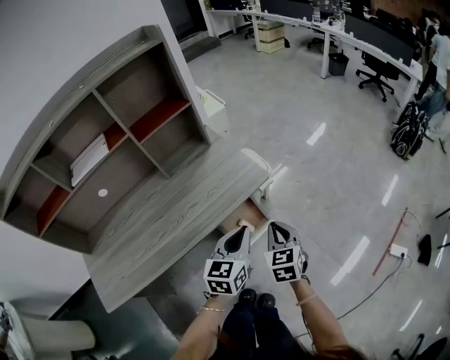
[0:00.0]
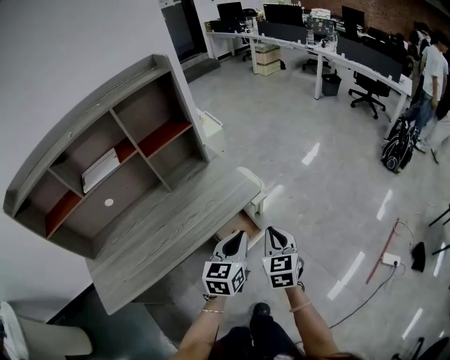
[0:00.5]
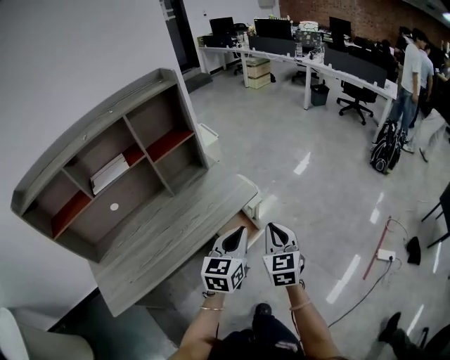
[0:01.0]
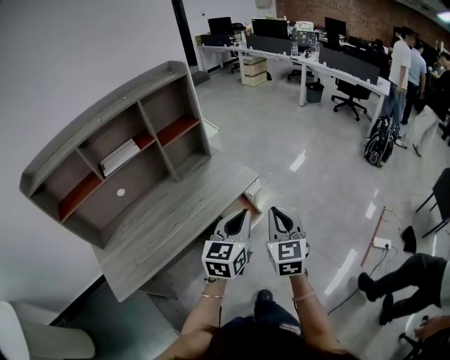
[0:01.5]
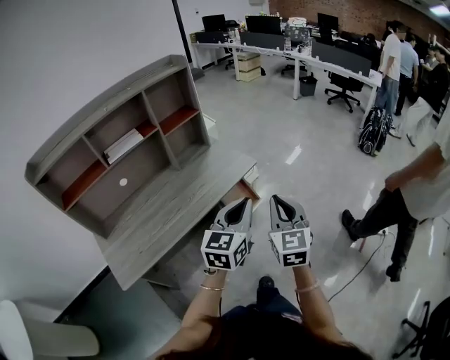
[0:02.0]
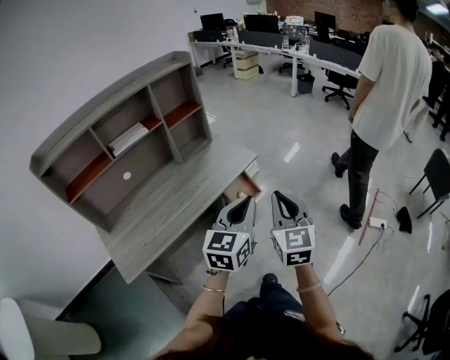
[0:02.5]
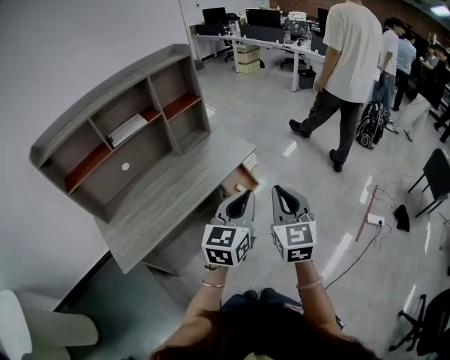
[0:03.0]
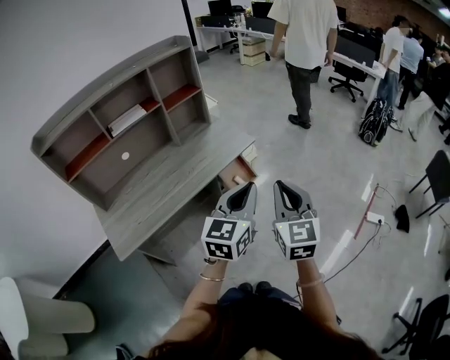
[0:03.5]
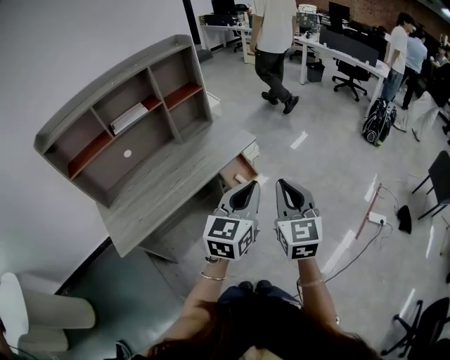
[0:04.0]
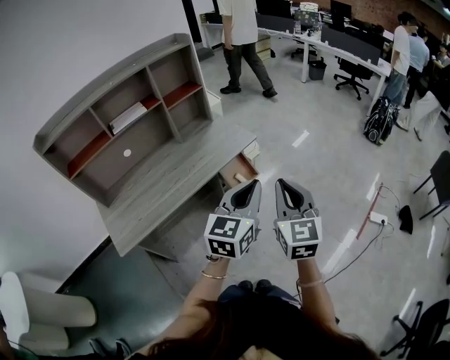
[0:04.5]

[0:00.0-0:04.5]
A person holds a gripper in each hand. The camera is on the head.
0:00.0 to 0:02.0: The left gripper heads backward and upward, covering roughly 30 cm. The right gripper goes some 35 cm upward and backward, and turns by about 20 degrees.
0:02.0 to 0:04.5: The left gripper heads backward and to the right, covering roughly 10 cm, while the right gripper heads backward, covering about 5 cm.

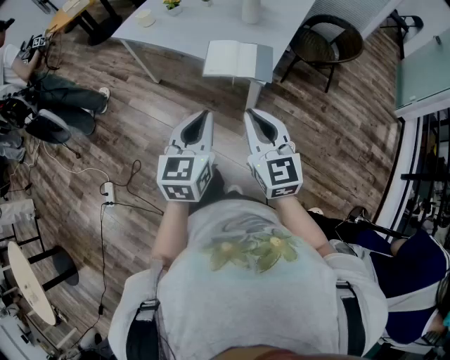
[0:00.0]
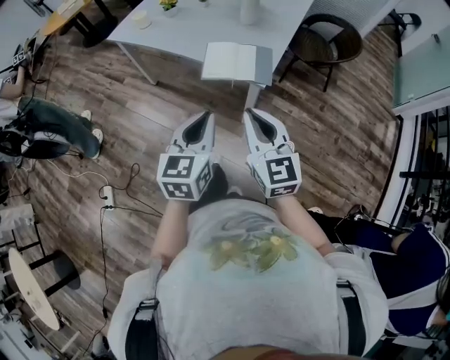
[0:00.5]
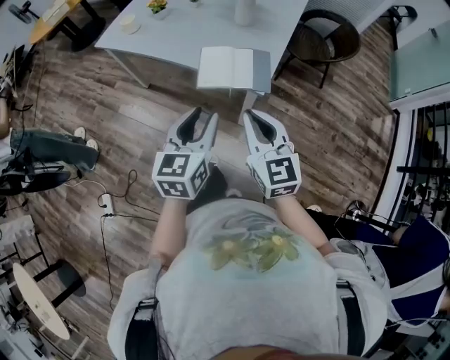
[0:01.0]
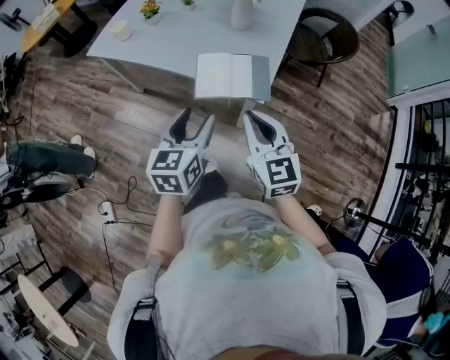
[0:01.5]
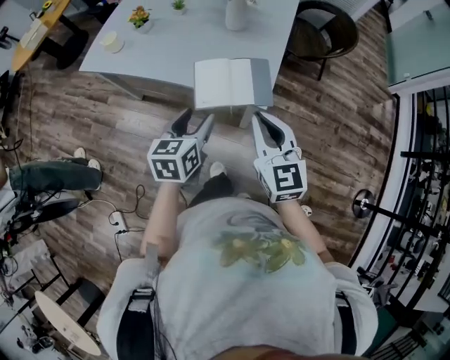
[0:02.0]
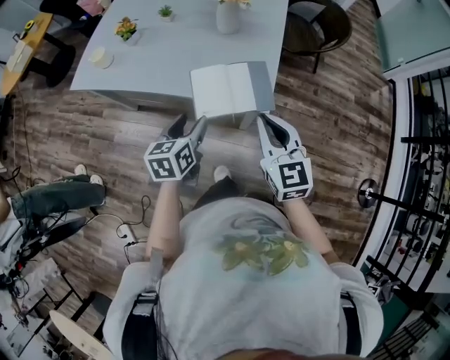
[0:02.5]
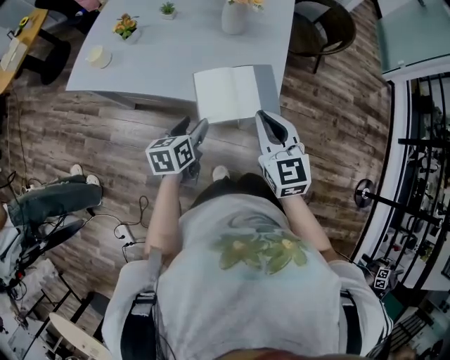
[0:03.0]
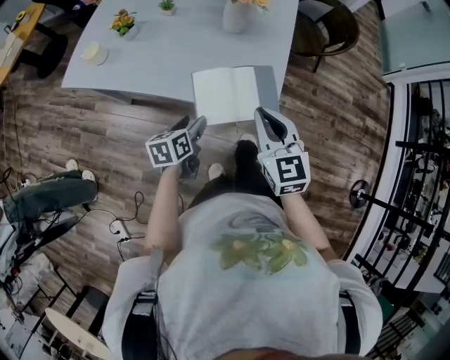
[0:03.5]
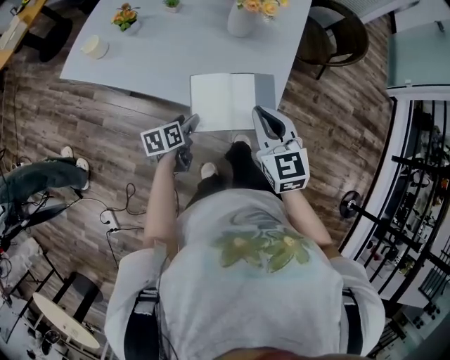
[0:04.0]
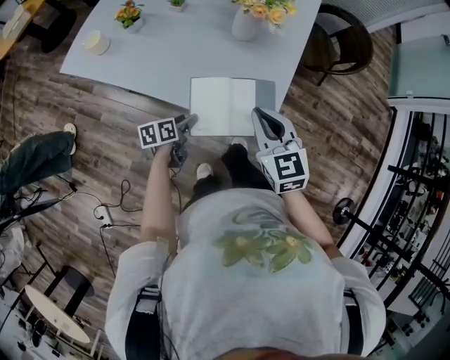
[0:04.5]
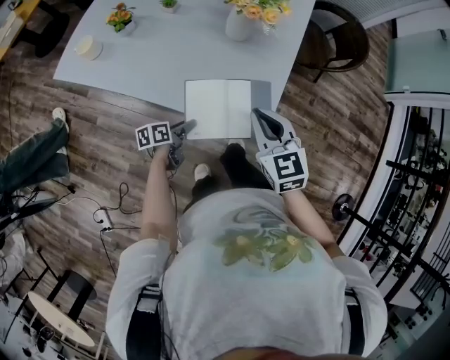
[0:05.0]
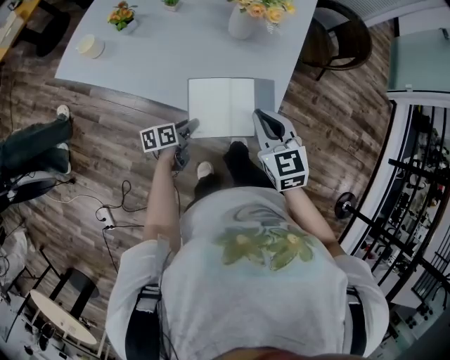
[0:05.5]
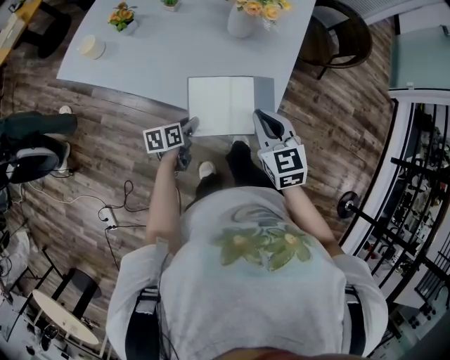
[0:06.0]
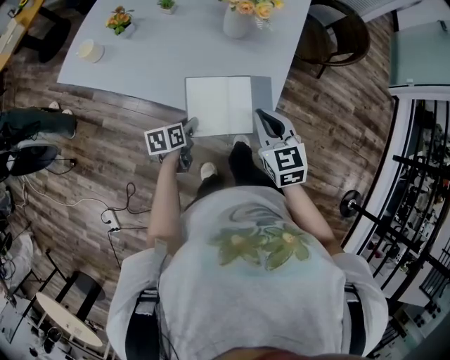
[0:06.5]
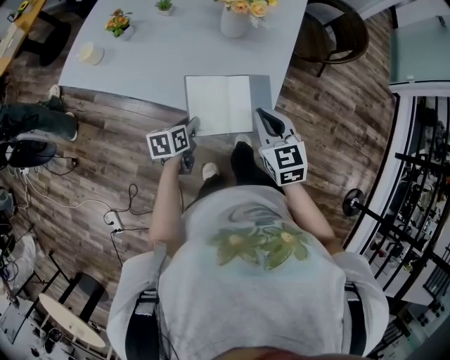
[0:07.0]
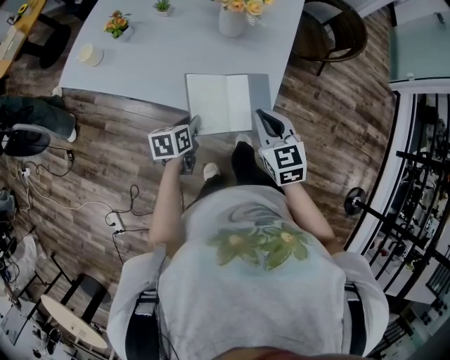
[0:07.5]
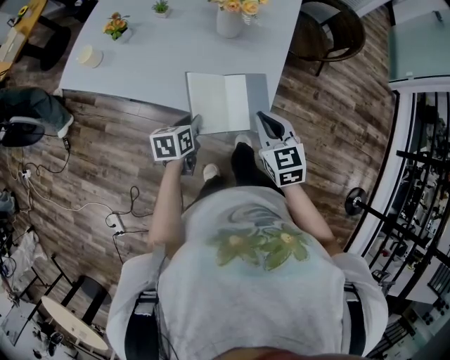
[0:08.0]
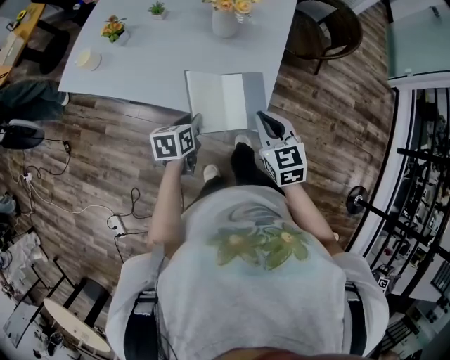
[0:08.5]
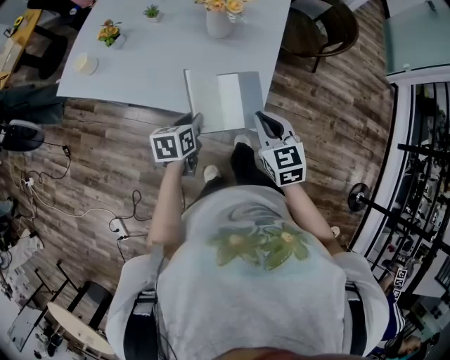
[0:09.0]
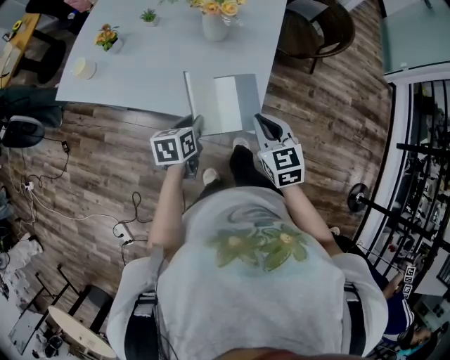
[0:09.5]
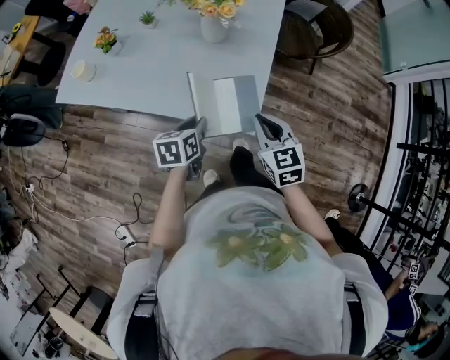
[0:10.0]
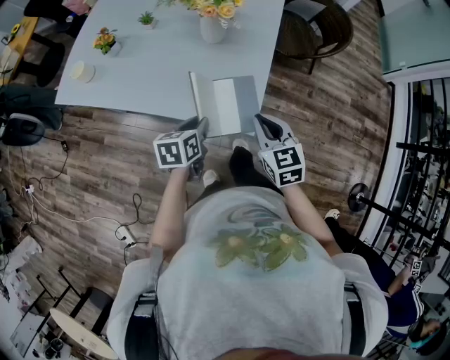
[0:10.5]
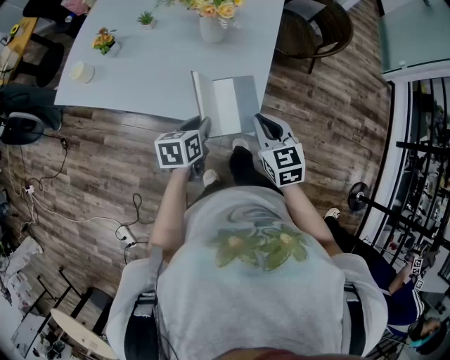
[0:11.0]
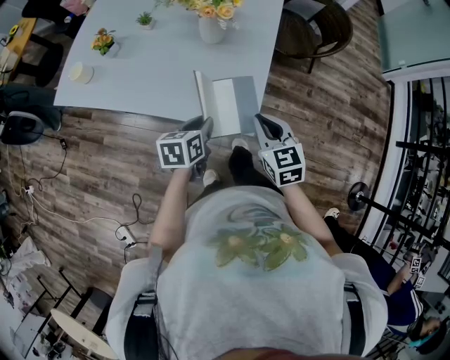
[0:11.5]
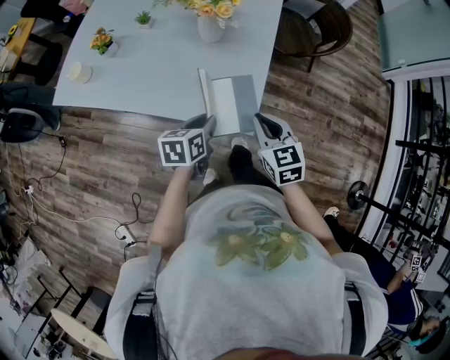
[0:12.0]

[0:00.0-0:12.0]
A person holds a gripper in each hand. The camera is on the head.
0:00.0 to 0:02.0: Both grippers travel together forward, some 20 cm. The left gripper rotates about 20 degrees, and opens its fingers.
0:02.0 to 0:04.0: The left gripper heads downward and forward, covering some 20 cm, and changes its angle by some 30 degrees. The right gripper moves forward and downward, some 15 cm.
0:04.0 to 0:06.0: The left gripper closes its fingers; the right gripper moves roughly 5 cm.
0:06.0 to 0:08.0: The left gripper travels upward by some 5 cm.
0:08.0 to 0:10.0: The left gripper ends up approximately 5 cm from where it was.
0:10.0 to 0:12.0: There are only small adjustments of the grippers.

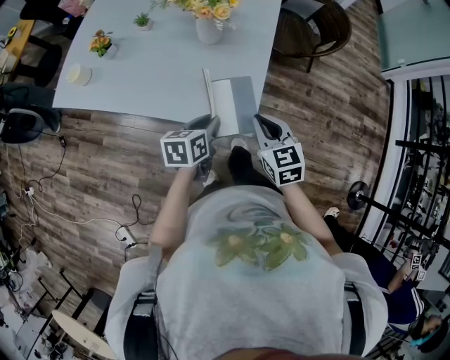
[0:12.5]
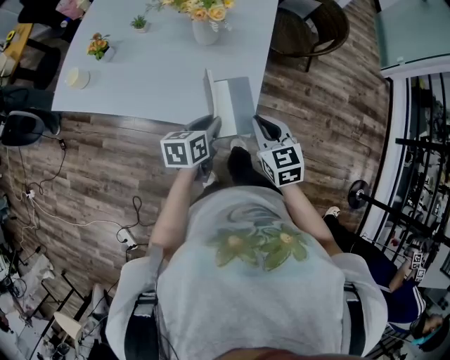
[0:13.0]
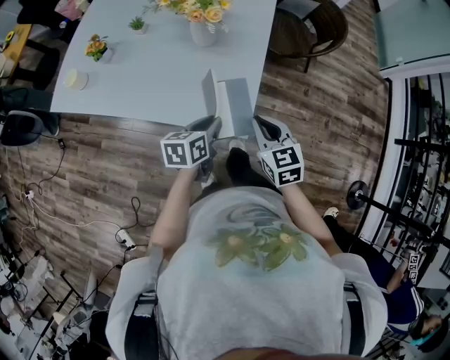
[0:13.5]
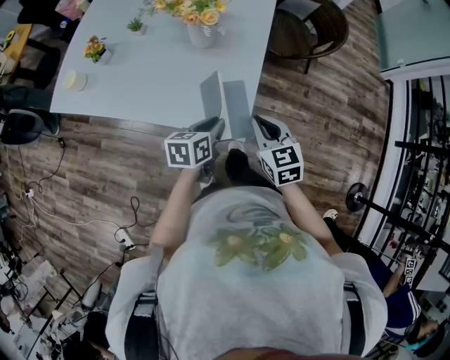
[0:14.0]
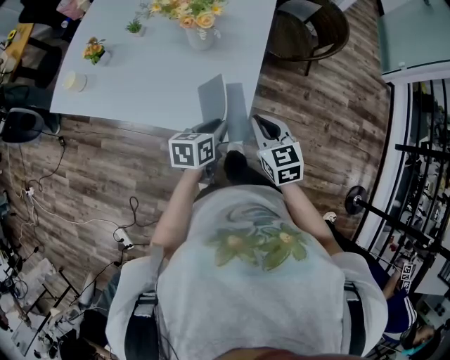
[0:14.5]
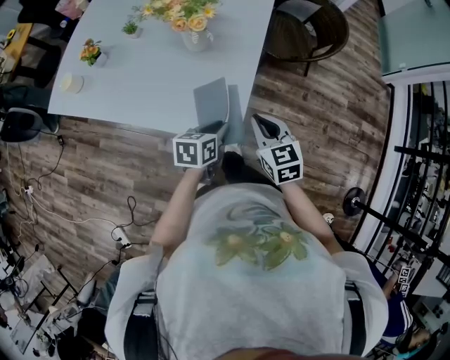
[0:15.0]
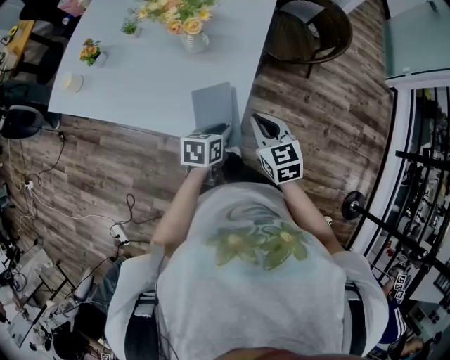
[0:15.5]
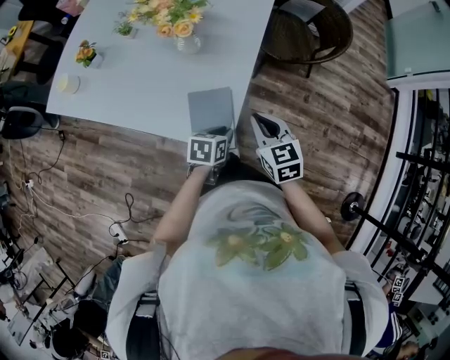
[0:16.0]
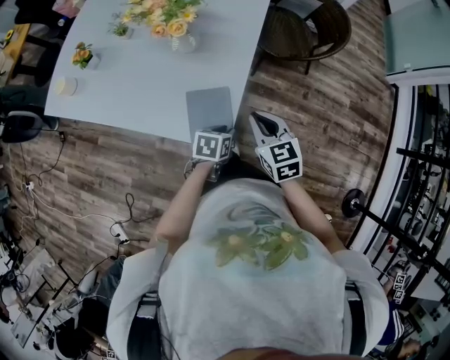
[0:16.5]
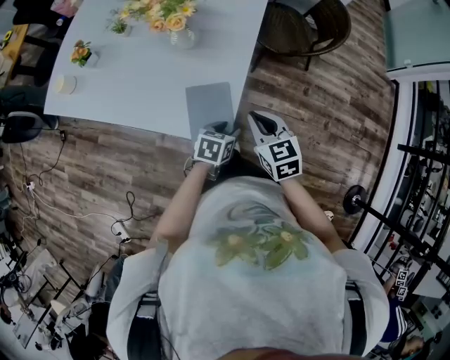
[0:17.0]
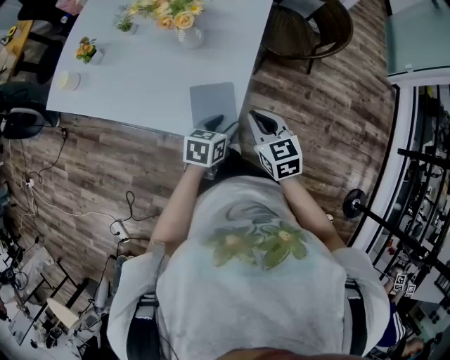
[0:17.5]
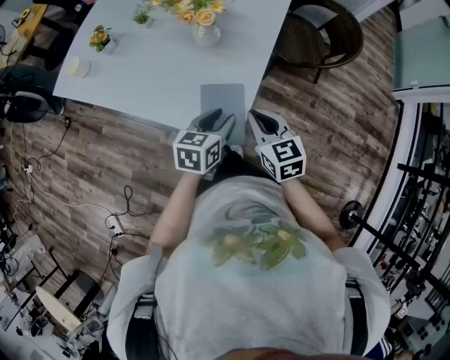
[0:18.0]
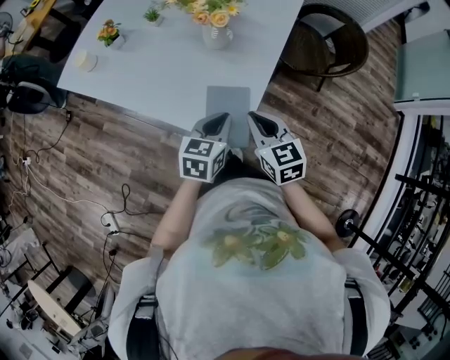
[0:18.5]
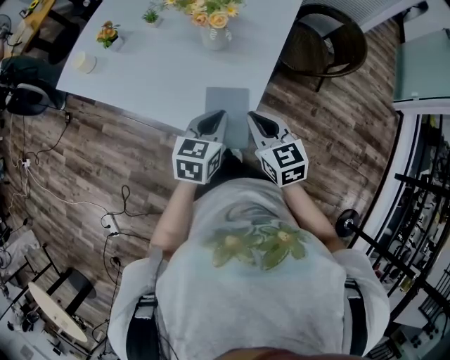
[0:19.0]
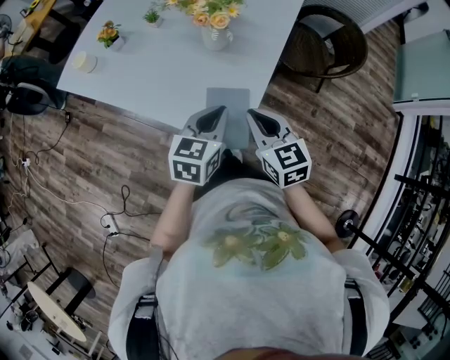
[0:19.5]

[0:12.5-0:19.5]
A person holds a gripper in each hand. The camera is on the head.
0:12.5 to 0:14.5: The left gripper travels to the right by some 5 cm.
0:14.5 to 0:16.0: The right gripper changes place by approximately 5 cm. Meanwhile the left gripper travels downward and to the right by about 10 cm.
0:16.0 to 0:17.5: The left gripper opens.
0:17.5 to 0:19.5: The left gripper is displaced upward and to the left by roughly 15 cm, swivels roughly 20 degrees, and closes. The right gripper shifts about 10 cm upward and to the left.

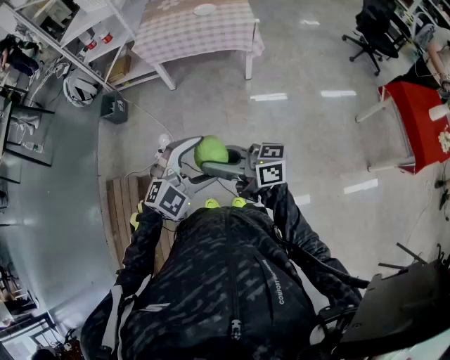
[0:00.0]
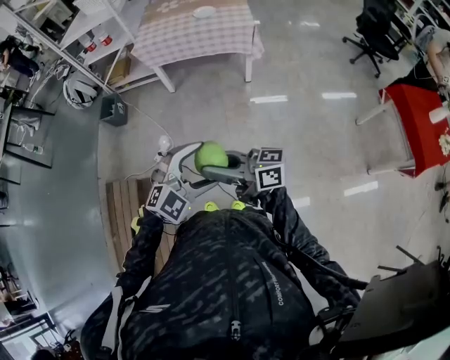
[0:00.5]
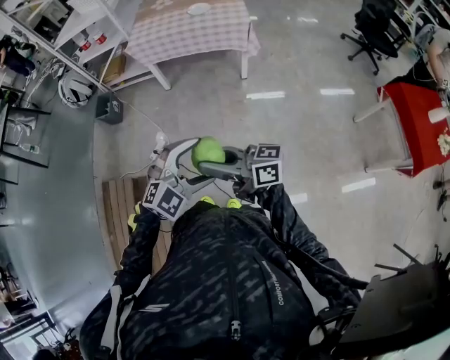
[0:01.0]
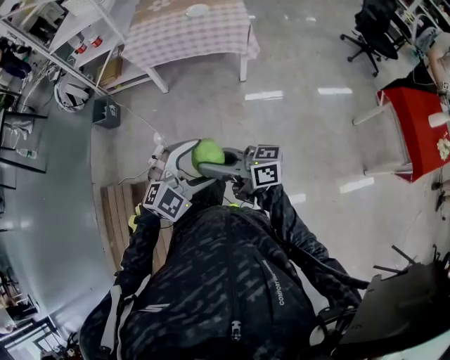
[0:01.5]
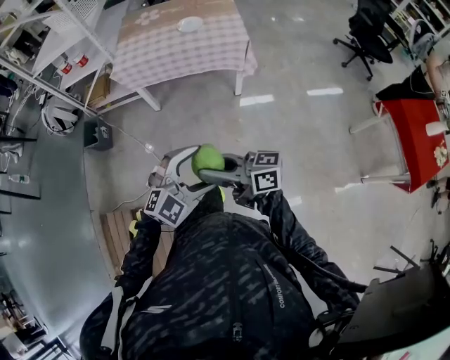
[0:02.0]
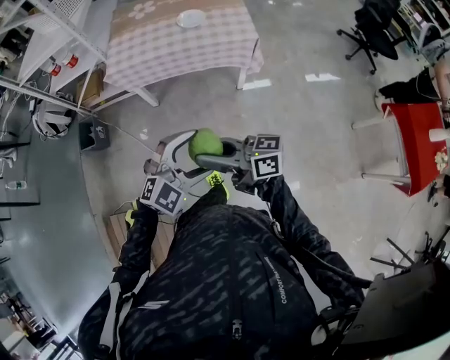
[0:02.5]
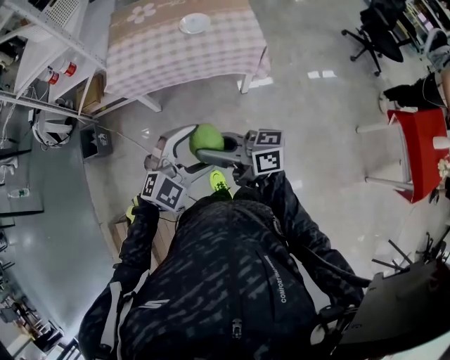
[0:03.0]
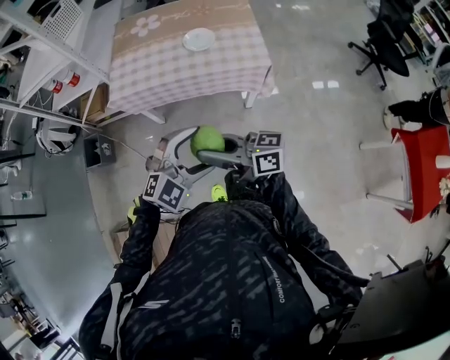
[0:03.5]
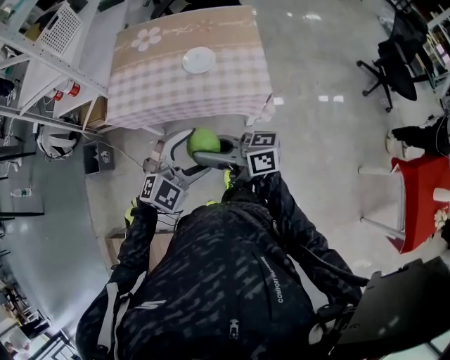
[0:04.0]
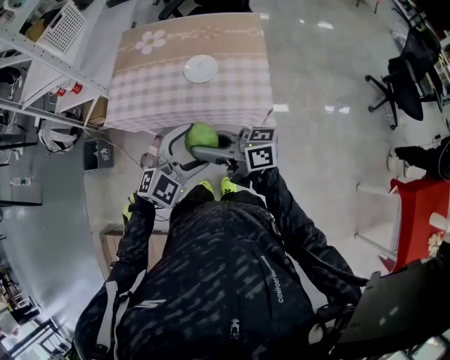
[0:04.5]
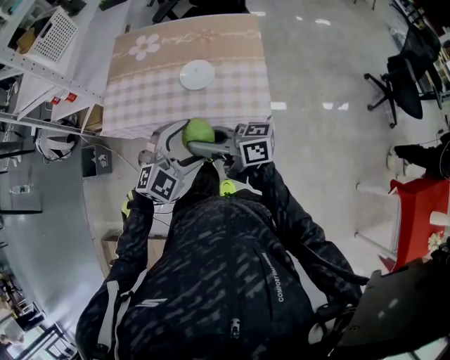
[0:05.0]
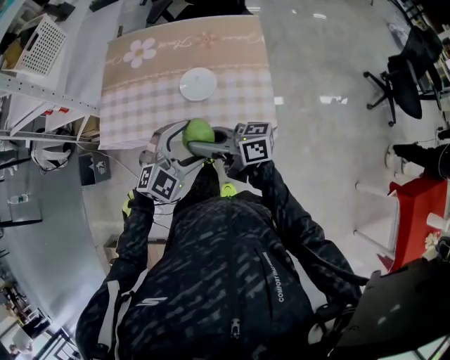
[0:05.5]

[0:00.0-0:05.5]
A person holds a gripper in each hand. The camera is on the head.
0:00.0 to 0:02.0: The left gripper changes place by approximately 20 cm; the right gripper shifts by about 25 cm.
0:02.0 to 0:03.5: The left gripper shifts by approximately 30 cm; the right gripper changes place by approximately 30 cm.
0:03.5 to 0:05.5: The left gripper moves roughly 30 cm. Meanwhile the right gripper shifts by about 30 cm.
